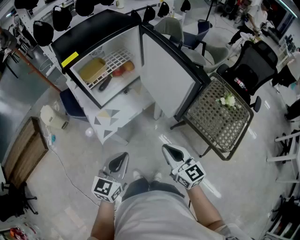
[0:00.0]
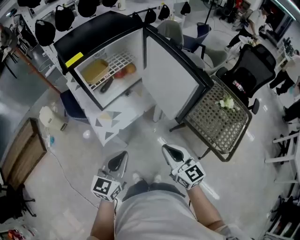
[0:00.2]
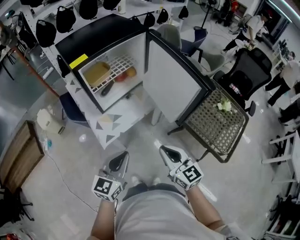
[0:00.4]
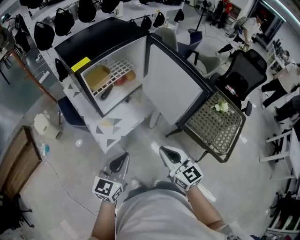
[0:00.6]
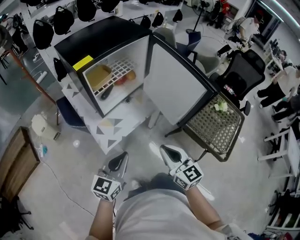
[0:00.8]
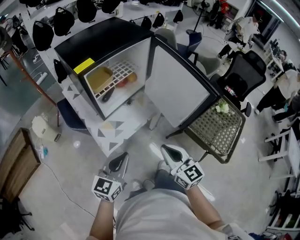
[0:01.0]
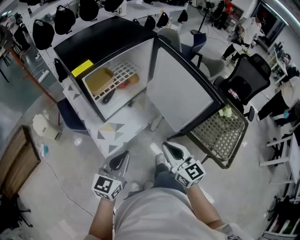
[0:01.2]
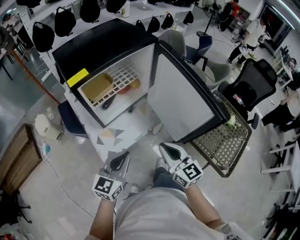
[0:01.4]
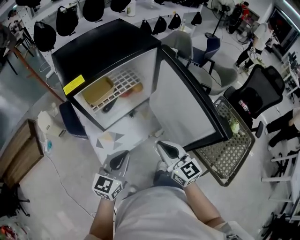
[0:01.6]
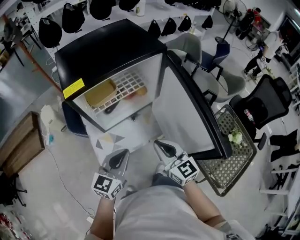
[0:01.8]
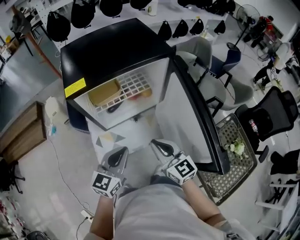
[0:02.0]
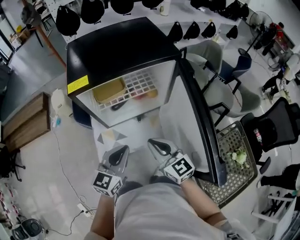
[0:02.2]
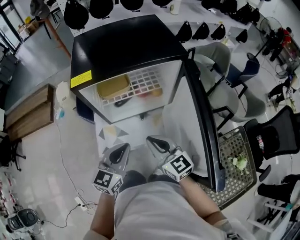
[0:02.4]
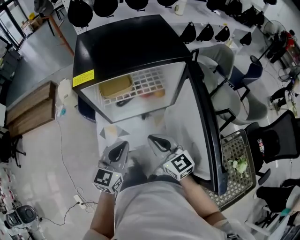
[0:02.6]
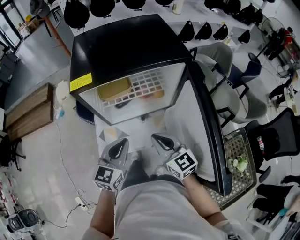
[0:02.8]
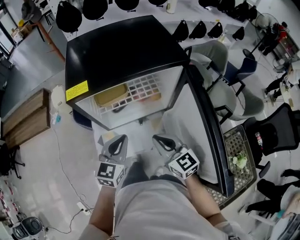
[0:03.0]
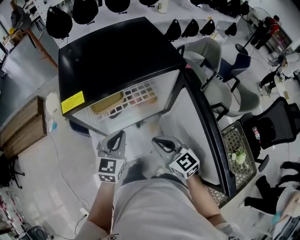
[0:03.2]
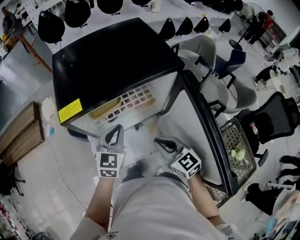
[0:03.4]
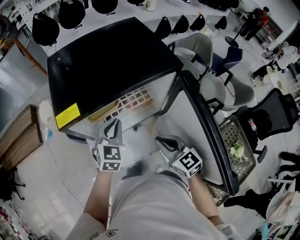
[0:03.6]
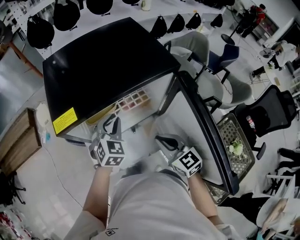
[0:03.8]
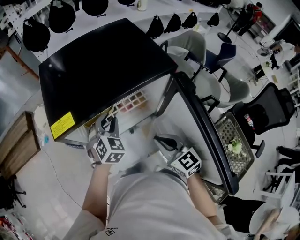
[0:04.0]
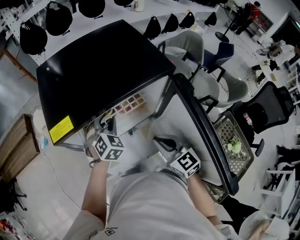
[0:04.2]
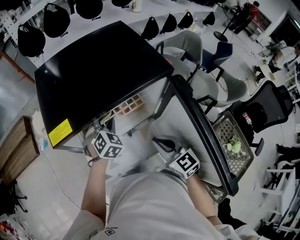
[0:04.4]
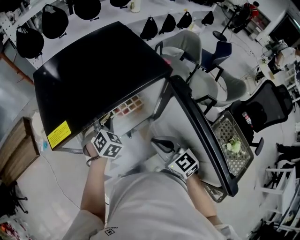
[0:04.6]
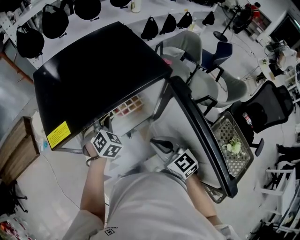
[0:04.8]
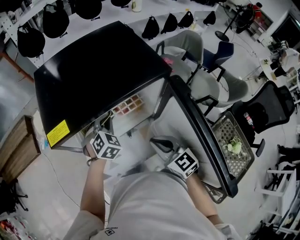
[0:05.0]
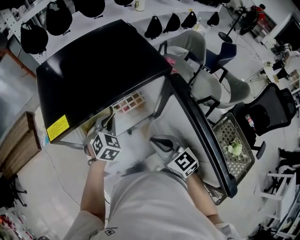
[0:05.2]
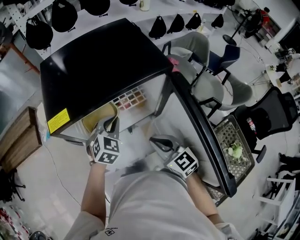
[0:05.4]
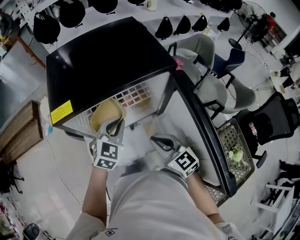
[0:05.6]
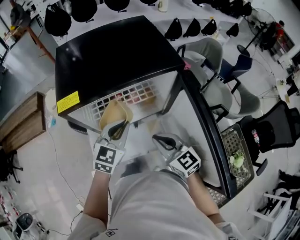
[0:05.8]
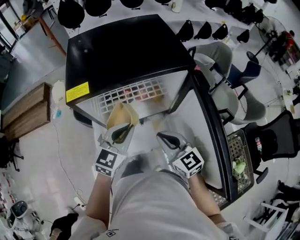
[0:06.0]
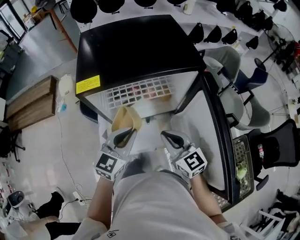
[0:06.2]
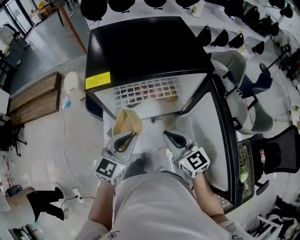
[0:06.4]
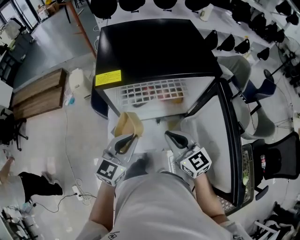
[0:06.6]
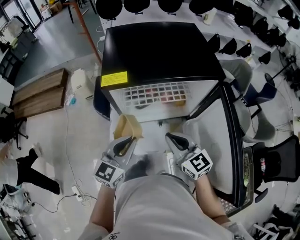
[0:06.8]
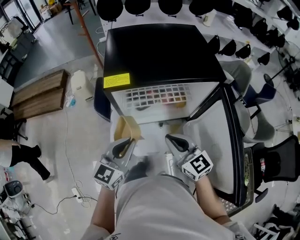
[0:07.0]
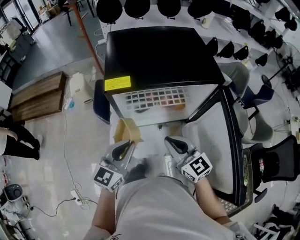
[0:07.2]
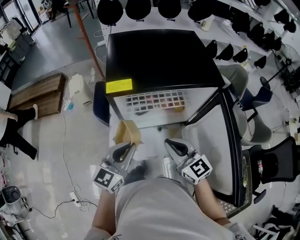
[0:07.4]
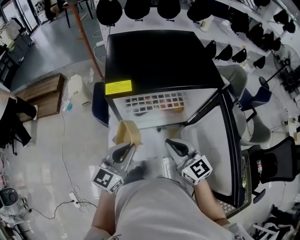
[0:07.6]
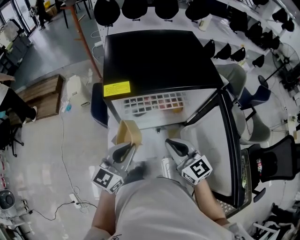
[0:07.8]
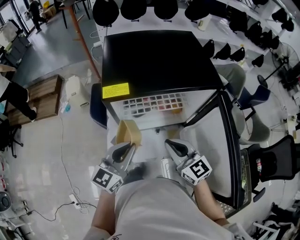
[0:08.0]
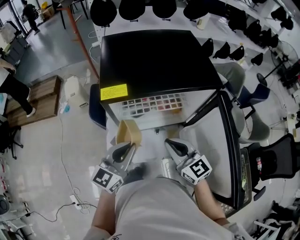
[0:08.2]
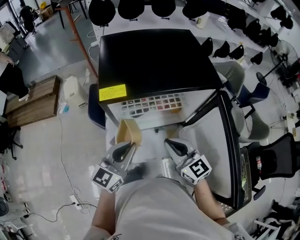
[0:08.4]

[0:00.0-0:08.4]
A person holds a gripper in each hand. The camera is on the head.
0:00.0 to 0:01.4: Both grippers travel together forward and to the left, some 15 cm.
0:01.4 to 0:02.8: The right gripper shifts by approximately 15 cm, and rotates approximately 30 degrees. Meanwhile the left gripper moves roughly 15 cm, and changes its angle by some 30 degrees.
0:02.8 to 0:04.2: The left gripper is displaced forward by some 20 cm, rotates around the line of its fingers by some 40 degrees, clockwise from behind, and opens up. The right gripper is displaced forward by approximately 5 cm.
0:04.2 to 0:05.6: The left gripper goes approximately 10 cm backward, changes its angle by about 20 degrees, and closes up.
0:05.6 to 0:07.0: The right gripper is displaced to the left by about 5 cm; the left gripper heads backward and to the left, covering about 15 cm, and swivels approximately 30 degrees.
0:07.0 to 0:08.4: There are only small adjustments of the grippers.

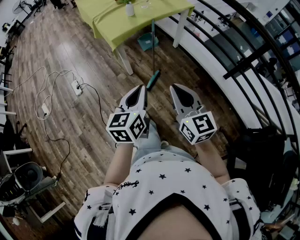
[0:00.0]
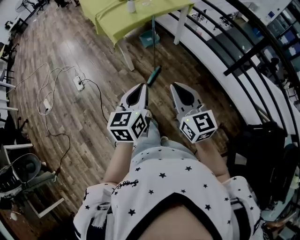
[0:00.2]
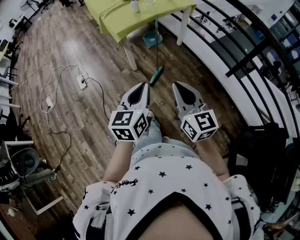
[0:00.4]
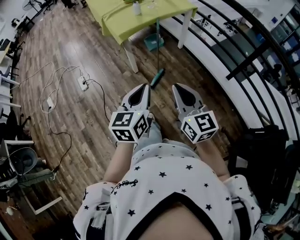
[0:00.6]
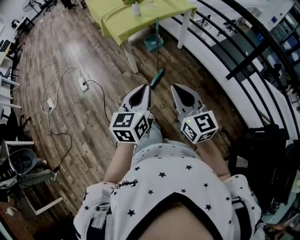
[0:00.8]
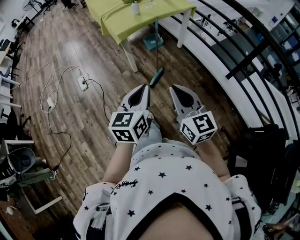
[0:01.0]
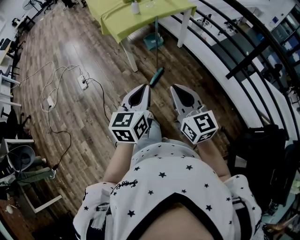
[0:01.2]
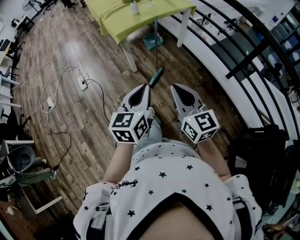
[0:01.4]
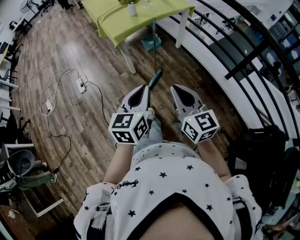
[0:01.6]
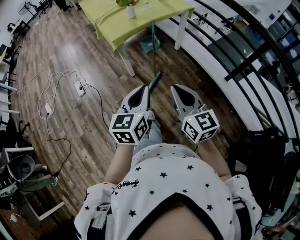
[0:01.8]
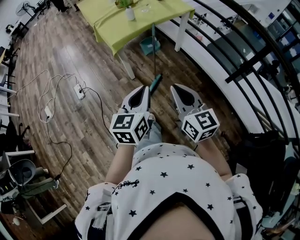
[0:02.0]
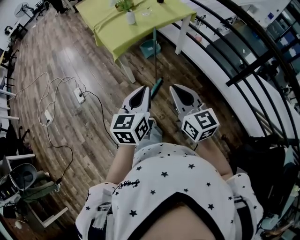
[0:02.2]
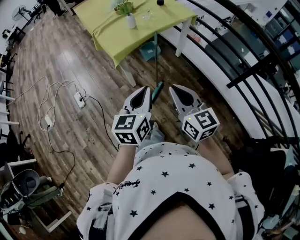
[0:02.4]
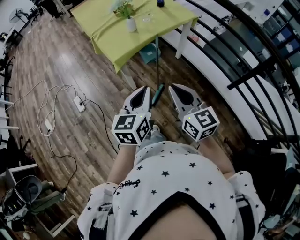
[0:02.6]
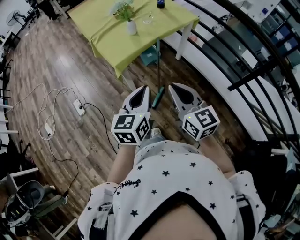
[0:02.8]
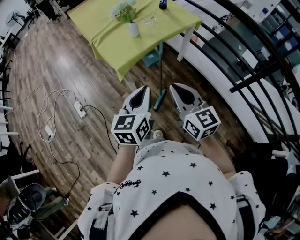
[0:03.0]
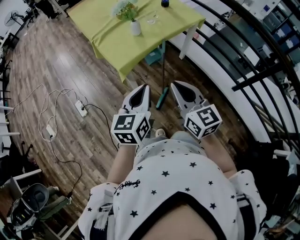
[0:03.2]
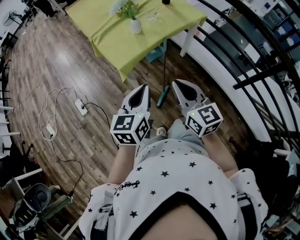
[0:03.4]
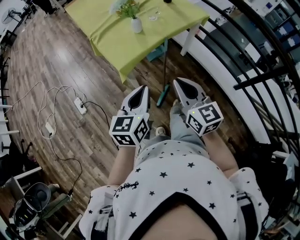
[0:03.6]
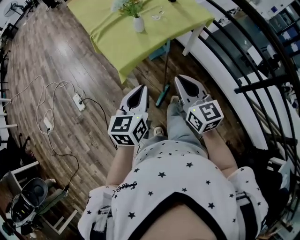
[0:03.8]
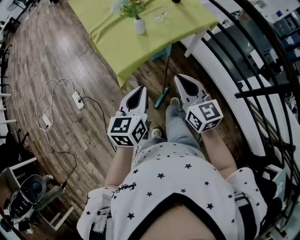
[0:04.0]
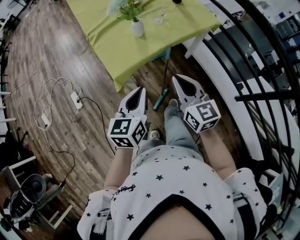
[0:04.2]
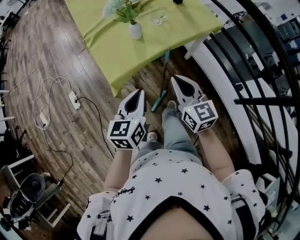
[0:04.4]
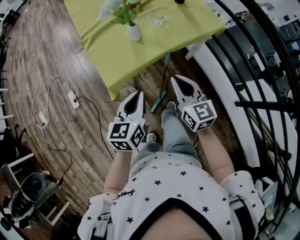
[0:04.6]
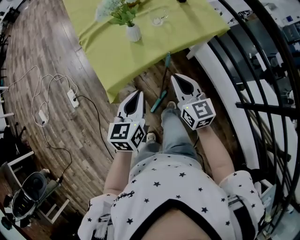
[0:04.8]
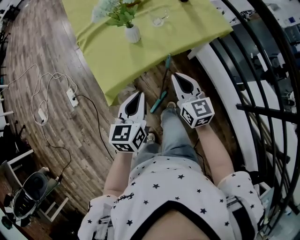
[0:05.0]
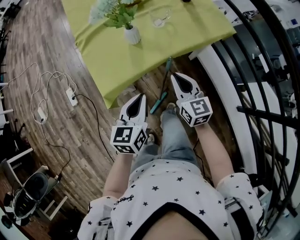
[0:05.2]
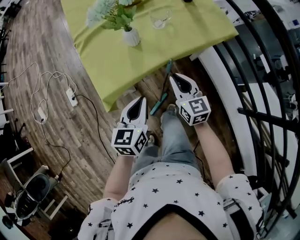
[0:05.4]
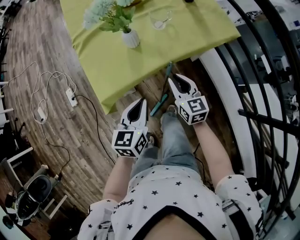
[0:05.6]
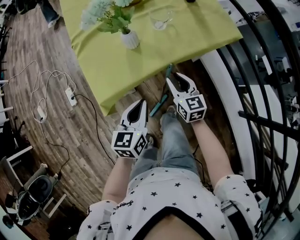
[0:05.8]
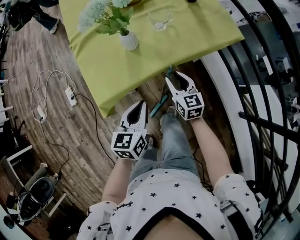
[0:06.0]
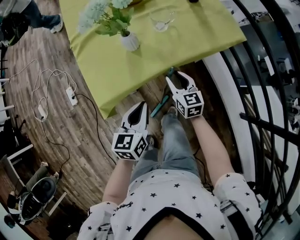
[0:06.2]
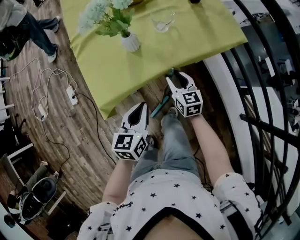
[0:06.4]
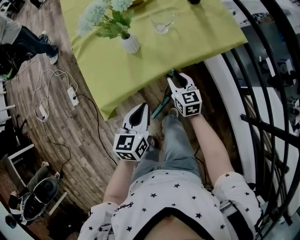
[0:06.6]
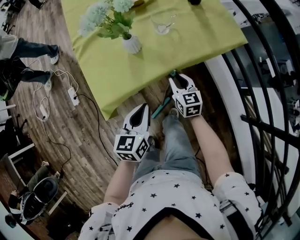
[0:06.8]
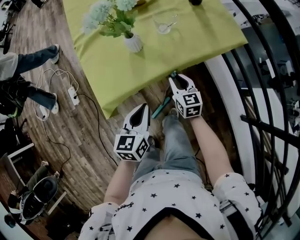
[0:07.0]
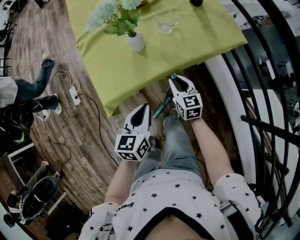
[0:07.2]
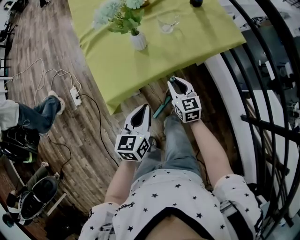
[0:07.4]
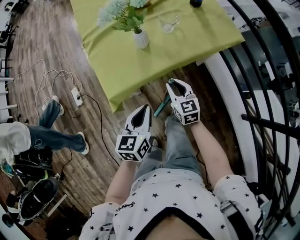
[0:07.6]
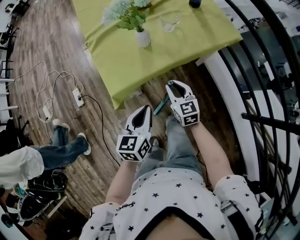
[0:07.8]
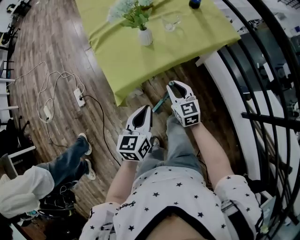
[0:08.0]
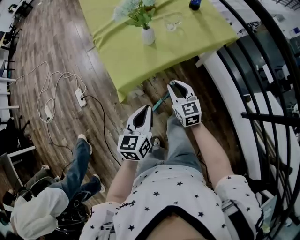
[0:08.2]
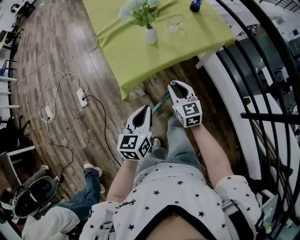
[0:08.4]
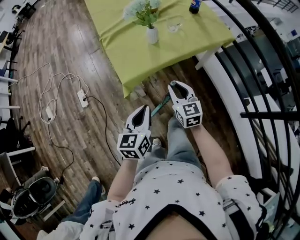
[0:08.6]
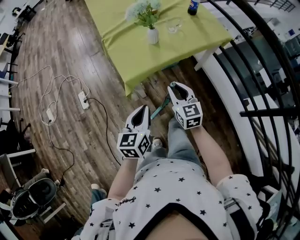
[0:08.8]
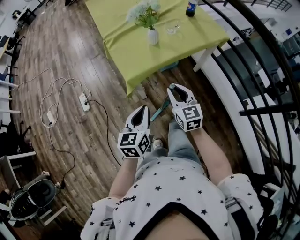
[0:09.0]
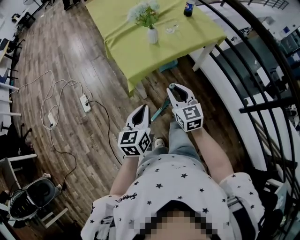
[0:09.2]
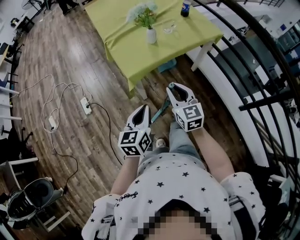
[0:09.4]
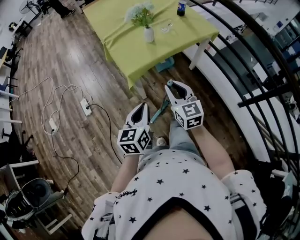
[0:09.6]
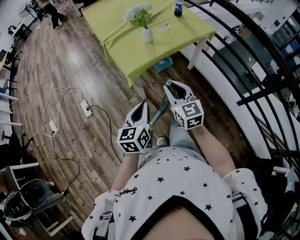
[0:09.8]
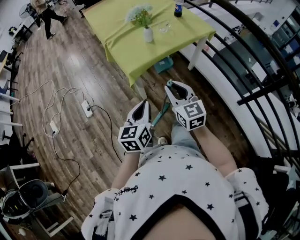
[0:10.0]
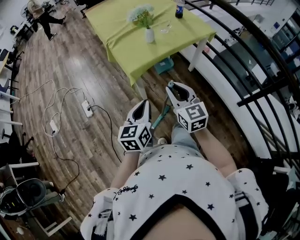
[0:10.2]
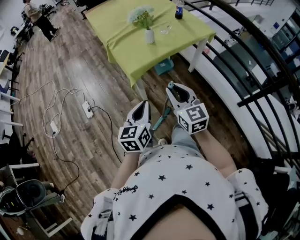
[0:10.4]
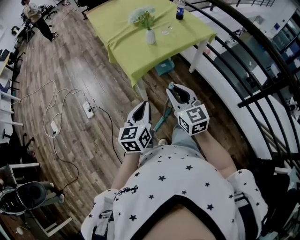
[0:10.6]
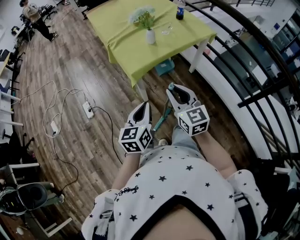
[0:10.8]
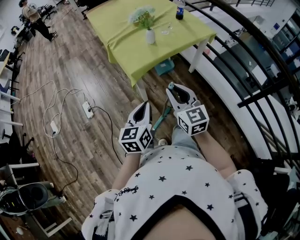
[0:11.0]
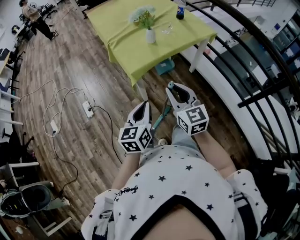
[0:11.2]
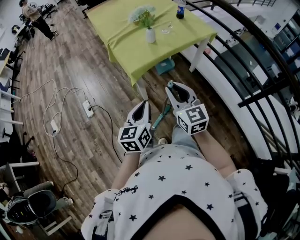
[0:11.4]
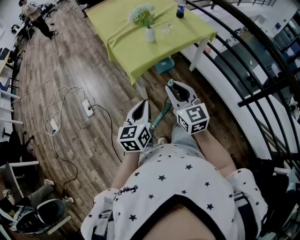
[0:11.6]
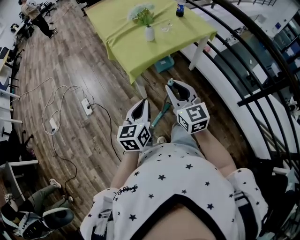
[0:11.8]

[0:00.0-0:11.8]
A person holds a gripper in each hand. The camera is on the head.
0:00.0 to 0:01.4: Both grippers travel together backward, roughly 10 cm.
0:01.4 to 0:03.0: The two grippers go roughly 30 cm forward.
0:03.0 to 0:04.4: The left gripper moves forward and downward, approximately 20 cm. Meanwhile the right gripper moves forward, about 20 cm.
0:04.4 to 0:06.0: The right gripper moves downward and forward, some 25 cm, and opens up; the left gripper shifts about 15 cm downward and forward.
0:06.0 to 0:07.4: The grippers stay close to where they were, moving slightly.
0:07.4 to 0:08.8: The right gripper goes roughly 20 cm backward, upward and to the left. The left gripper travels backward, to the left and upward by some 20 cm.
0:08.8 to 0:10.4: The left gripper shifts approximately 10 cm backward; the right gripper is displaced backward and upward by about 20 cm.
0:10.4 to 0:11.8: There are only small adjustments of the grippers.

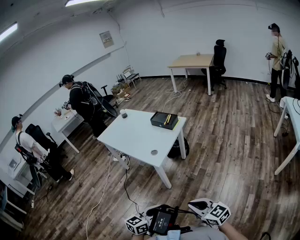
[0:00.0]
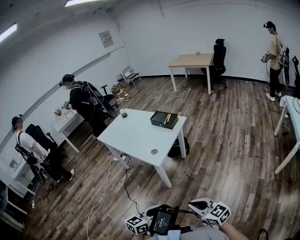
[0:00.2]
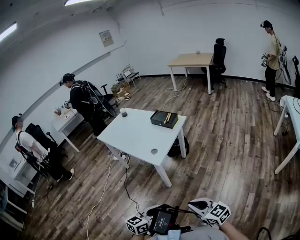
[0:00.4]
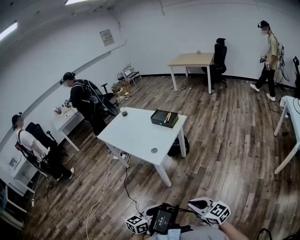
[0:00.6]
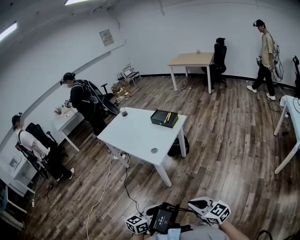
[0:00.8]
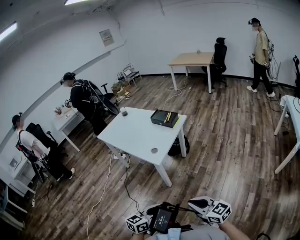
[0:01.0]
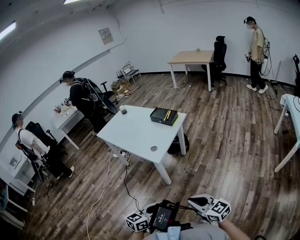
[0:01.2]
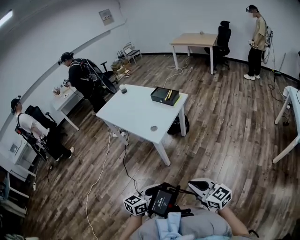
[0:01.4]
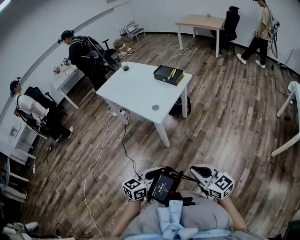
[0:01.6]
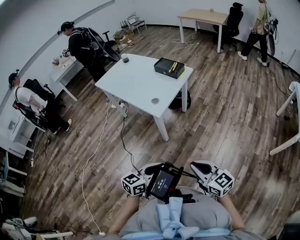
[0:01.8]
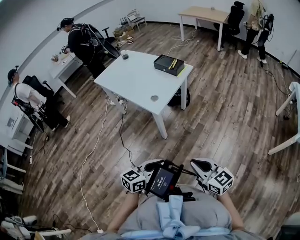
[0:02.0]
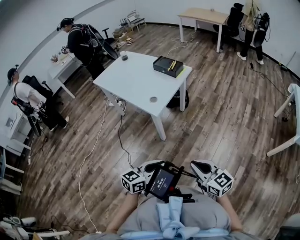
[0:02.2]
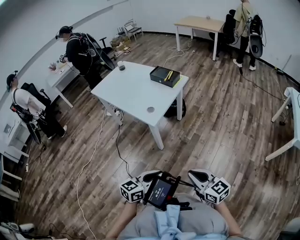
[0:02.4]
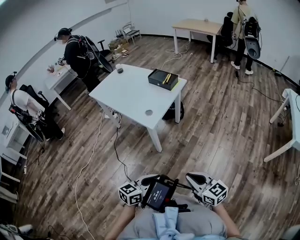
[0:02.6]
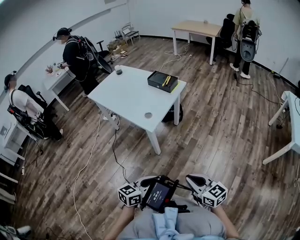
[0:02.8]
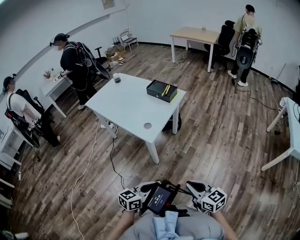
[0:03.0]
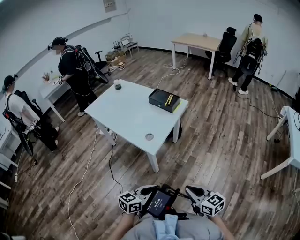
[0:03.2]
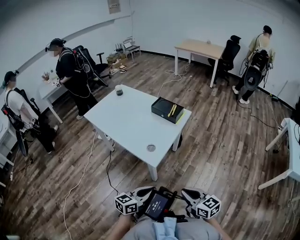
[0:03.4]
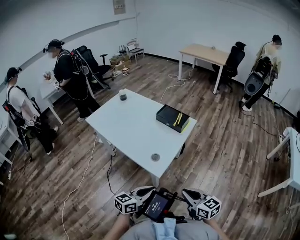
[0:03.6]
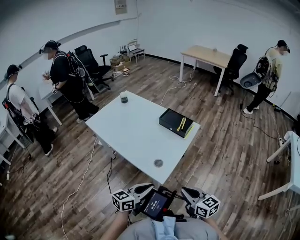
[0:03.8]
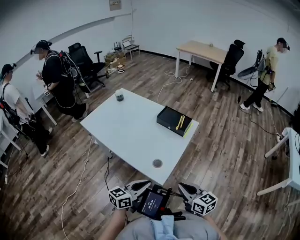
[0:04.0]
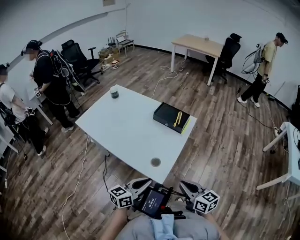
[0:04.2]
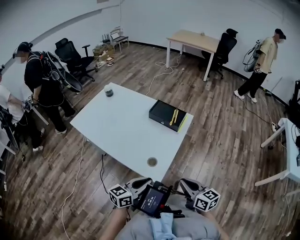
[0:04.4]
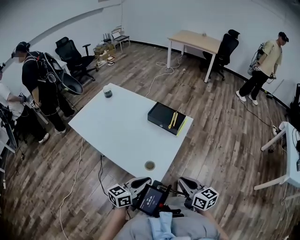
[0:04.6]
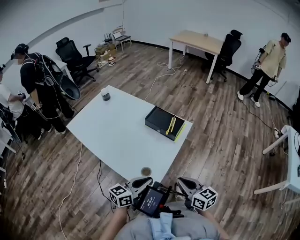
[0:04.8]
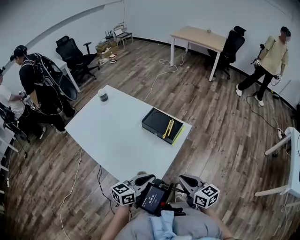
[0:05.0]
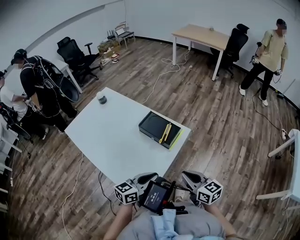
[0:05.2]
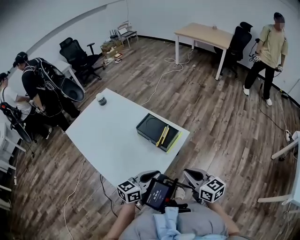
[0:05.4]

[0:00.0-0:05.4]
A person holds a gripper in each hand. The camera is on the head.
0:00.0 to 0:02.8: There are only small adjustments of the grippers.
0:02.8 to 0:04.0: The two grippers go roughly 35 cm forward and to the left.
0:04.0 to 0:05.4: Both grippers travel together forward and to the right, roughly 30 cm.
